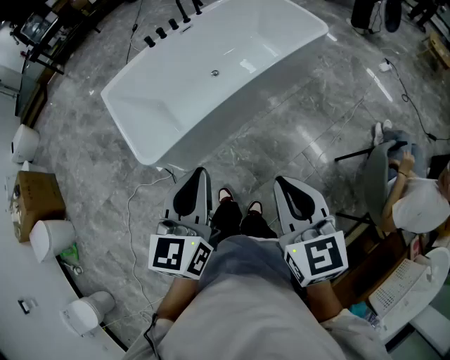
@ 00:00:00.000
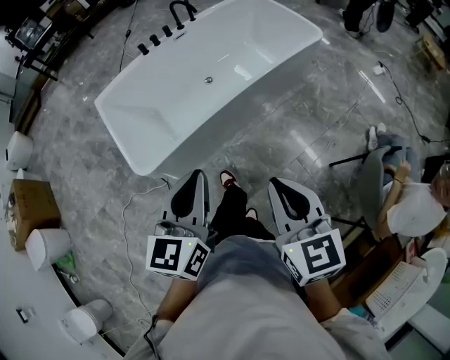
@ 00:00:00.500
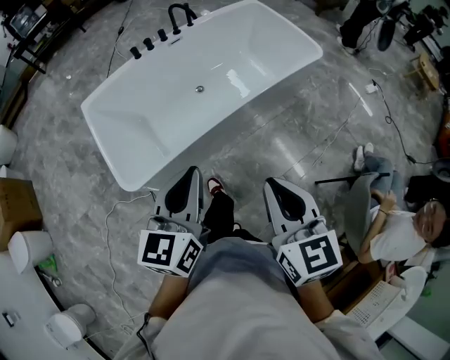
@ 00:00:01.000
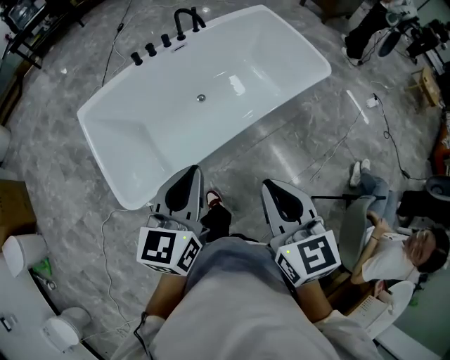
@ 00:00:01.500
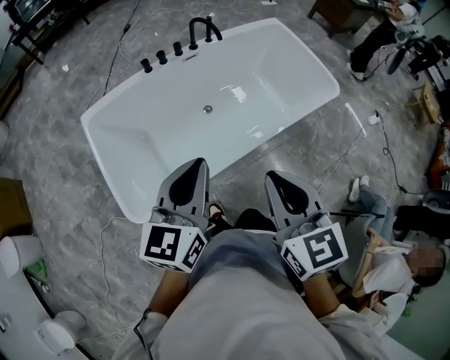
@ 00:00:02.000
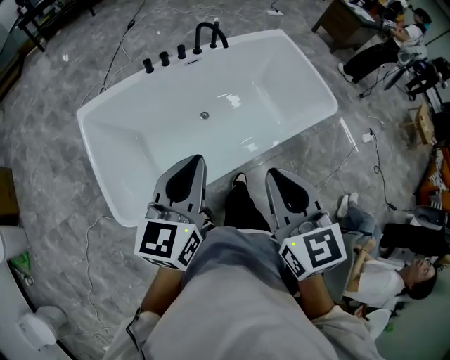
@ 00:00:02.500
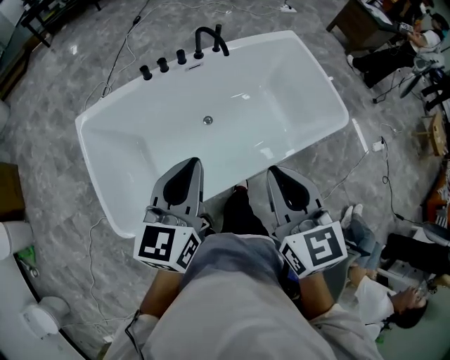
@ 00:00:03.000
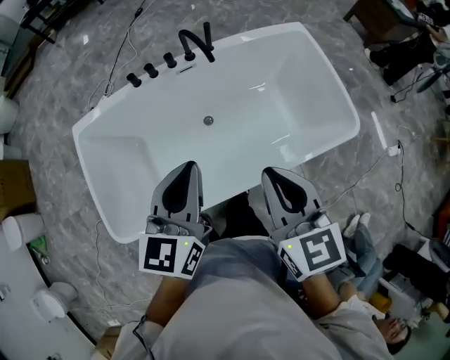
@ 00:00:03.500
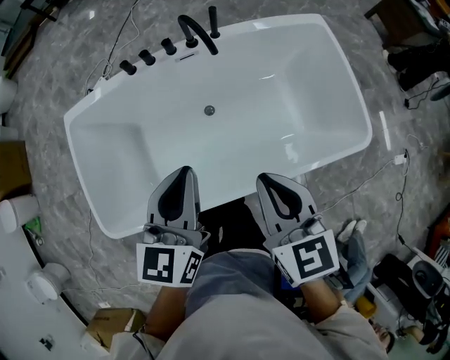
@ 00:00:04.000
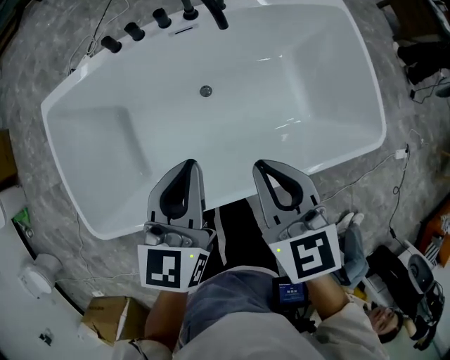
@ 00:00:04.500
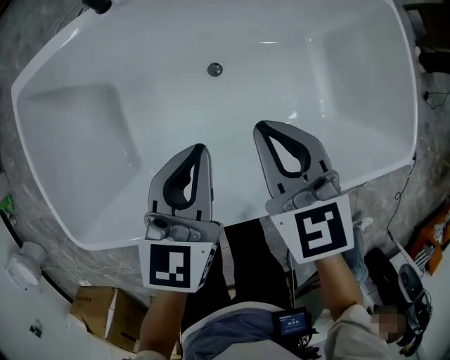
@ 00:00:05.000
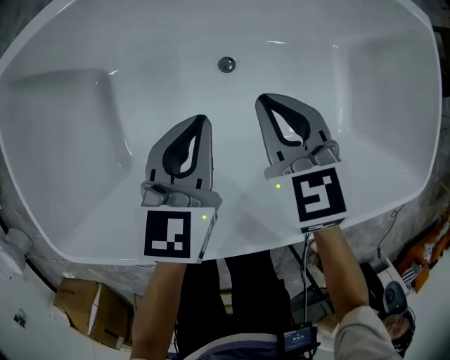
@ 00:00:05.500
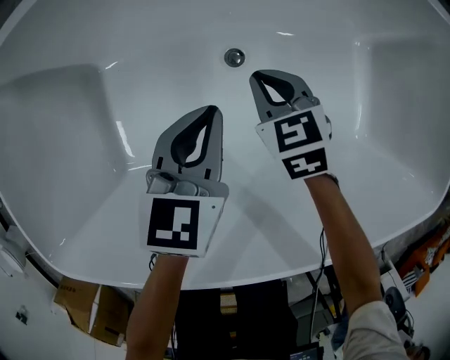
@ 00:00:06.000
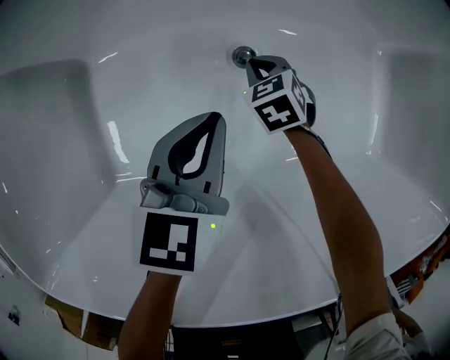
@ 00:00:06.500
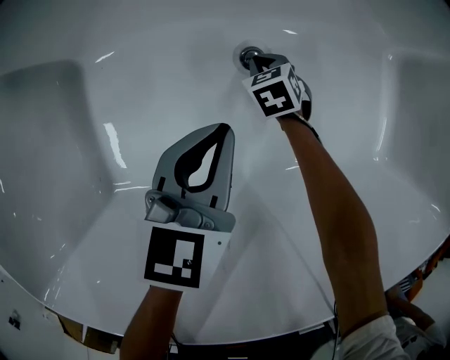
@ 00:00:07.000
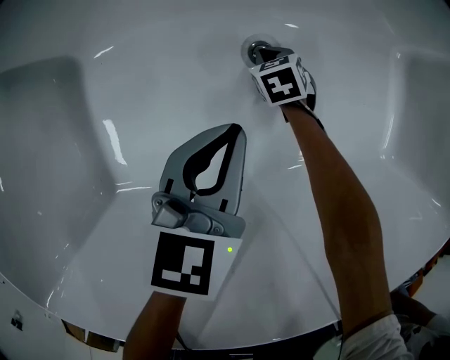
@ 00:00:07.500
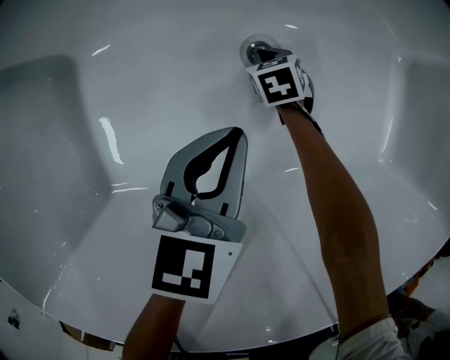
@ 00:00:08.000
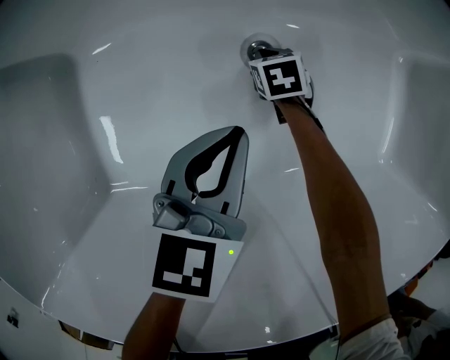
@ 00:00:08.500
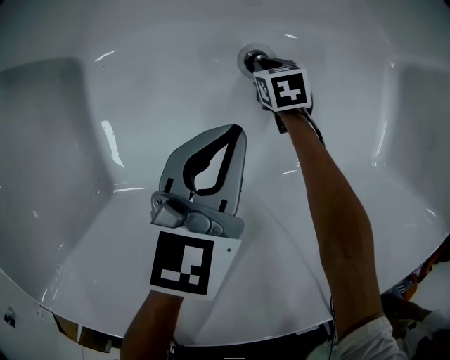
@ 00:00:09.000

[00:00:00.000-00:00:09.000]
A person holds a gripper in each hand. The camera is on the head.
00:00:00.000 to 00:00:02.000: Both grippers travel together forward, approximately 35 cm.
00:00:02.000 to 00:00:04.500: The two grippers go about 40 cm forward, downward and to the right. The right gripper swivels some 20 degrees. The left gripper changes its angle by roughly 20 degrees.
00:00:04.500 to 00:00:07.000: Both grippers travel together downward, about 60 cm. The right gripper angles its fingers downward, by approximately 30 degrees.
00:00:07.000 to 00:00:09.000: The grippers make only small movements.

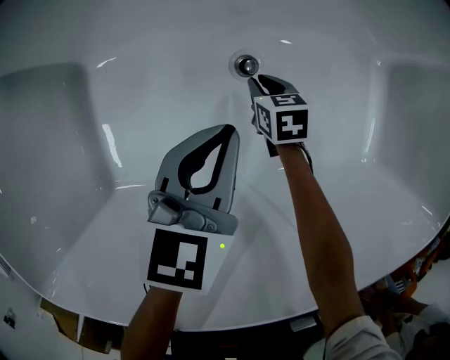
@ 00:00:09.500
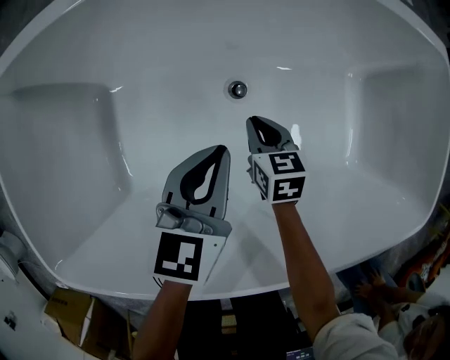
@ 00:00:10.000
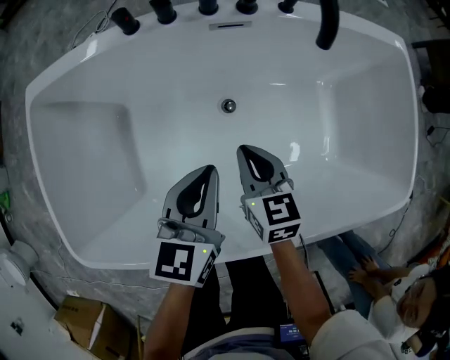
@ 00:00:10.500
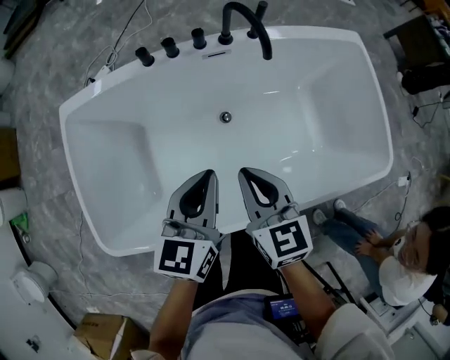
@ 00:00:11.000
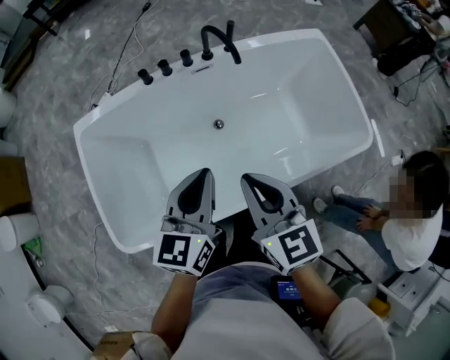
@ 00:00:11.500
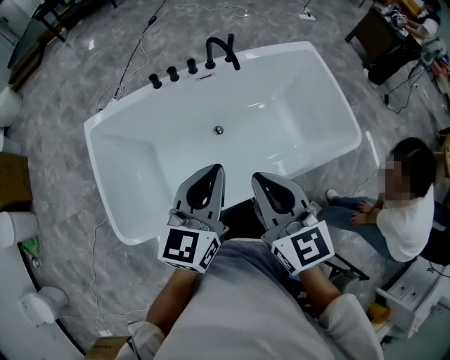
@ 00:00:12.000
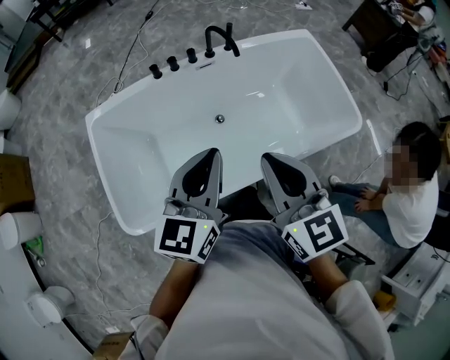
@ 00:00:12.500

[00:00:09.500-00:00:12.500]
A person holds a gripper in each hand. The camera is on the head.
00:00:09.500 to 00:00:11.000: The two grippers go approximately 50 cm upward. The right gripper tips its fingers upward by some 30 degrees.
00:00:11.000 to 00:00:12.500: Both grippers travel together upward and backward, about 30 cm.

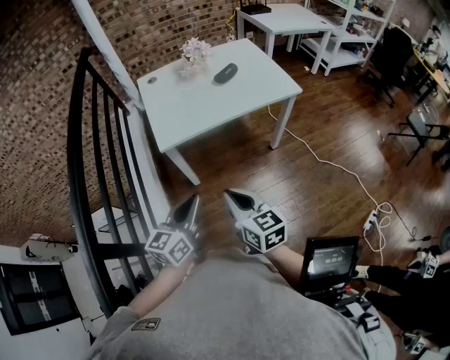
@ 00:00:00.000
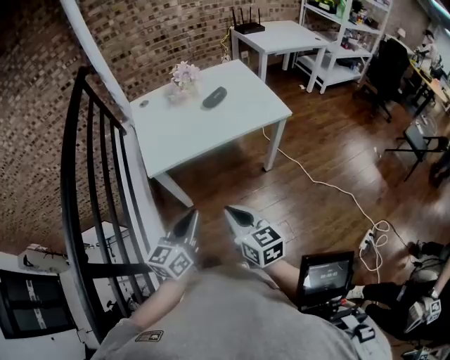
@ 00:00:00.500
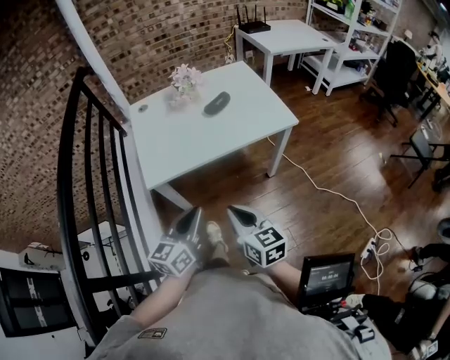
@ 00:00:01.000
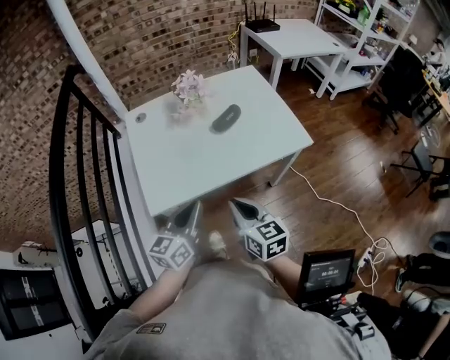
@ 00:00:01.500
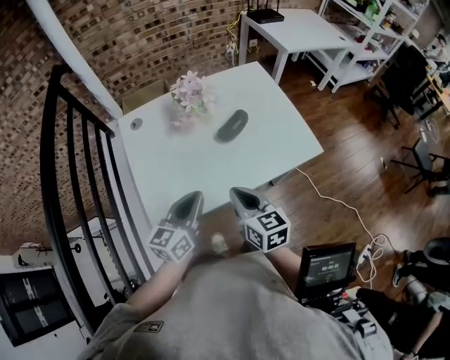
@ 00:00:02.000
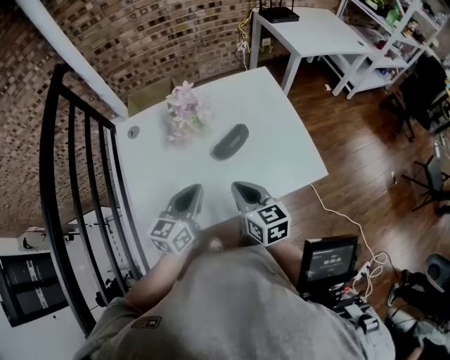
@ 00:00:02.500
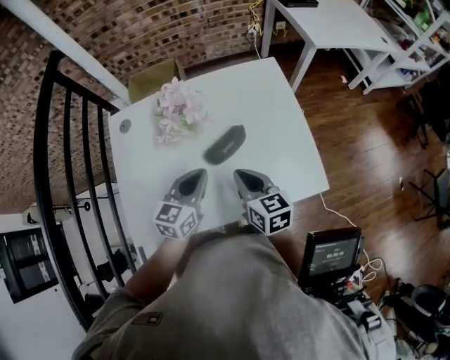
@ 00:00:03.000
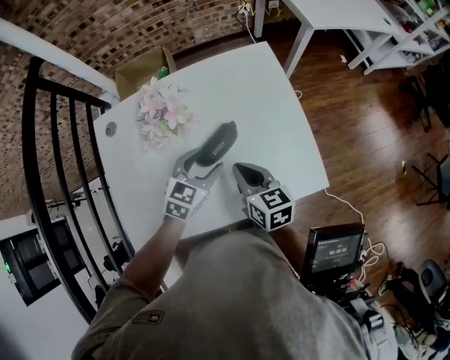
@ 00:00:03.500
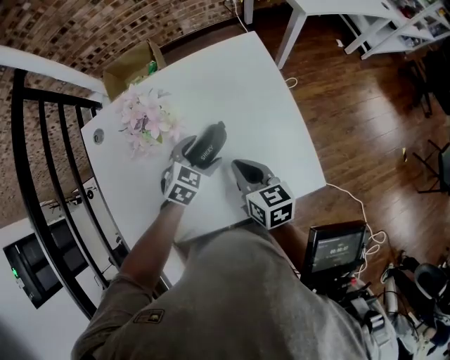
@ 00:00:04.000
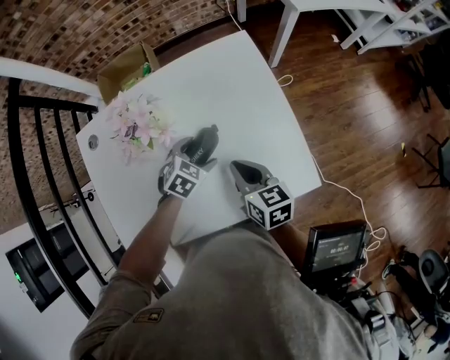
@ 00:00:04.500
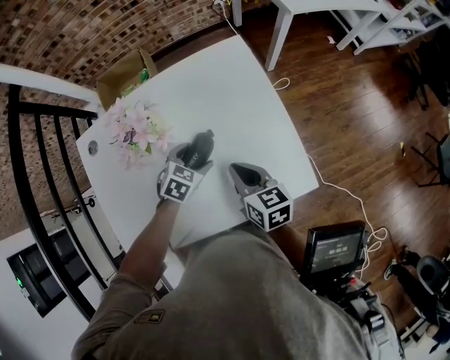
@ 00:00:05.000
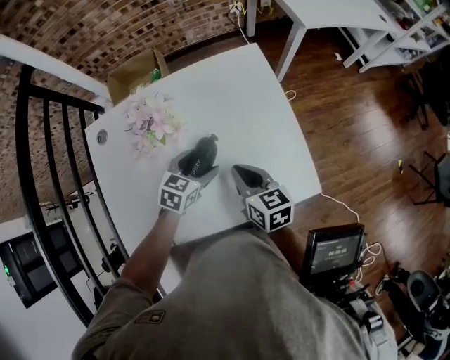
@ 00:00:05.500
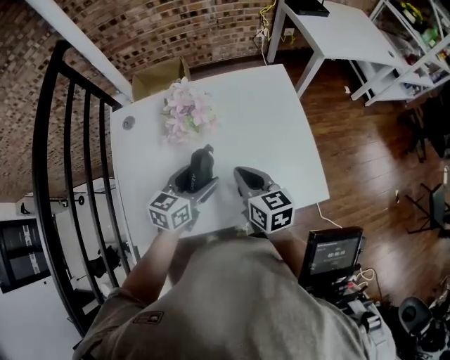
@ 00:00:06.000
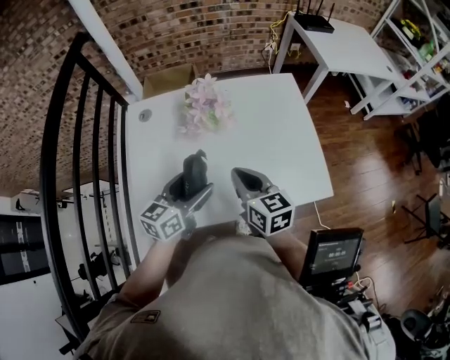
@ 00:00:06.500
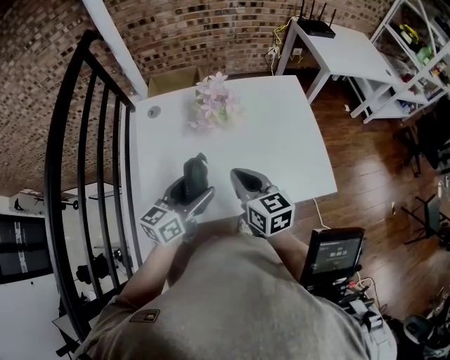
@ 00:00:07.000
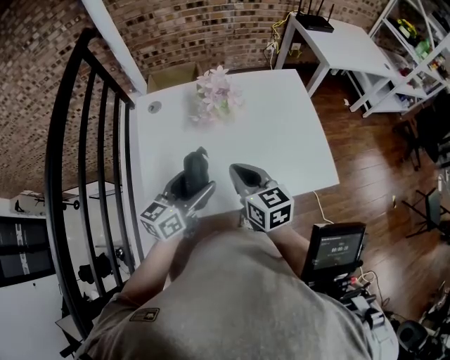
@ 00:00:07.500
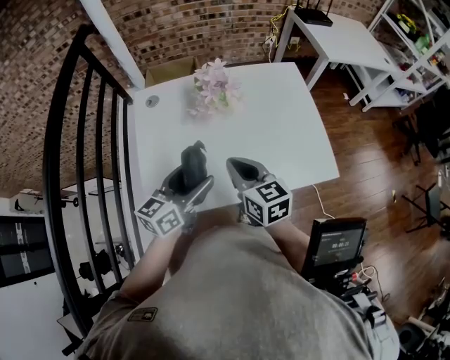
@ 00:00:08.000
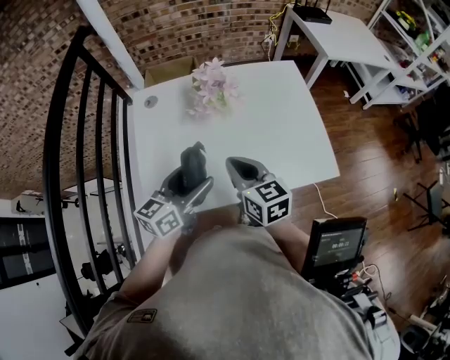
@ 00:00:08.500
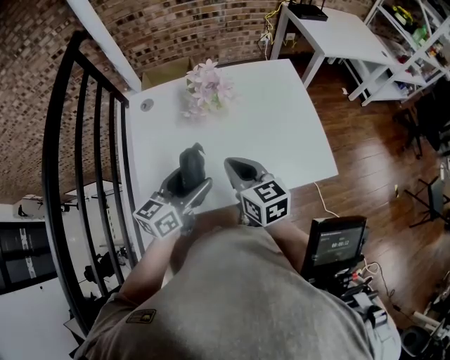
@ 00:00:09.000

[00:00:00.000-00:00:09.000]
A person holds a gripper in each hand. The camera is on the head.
00:00:00.000 to 00:00:02.000: The two grippers go some 35 cm forward.
00:00:02.000 to 00:00:04.500: The right gripper travels forward, to the right and downward by about 30 cm. The left gripper is displaced forward, downward and to the right by roughly 40 cm, tilts its fingers approximately 50 degrees downward, and opens up.
00:00:04.500 to 00:00:07.000: The left gripper moves upward, backward and to the left, some 35 cm, and points its fingers some 50 degrees further upward. The right gripper shifts some 25 cm to the left, upward and backward.
00:00:07.000 to 00:00:09.000: The grippers make only small movements.

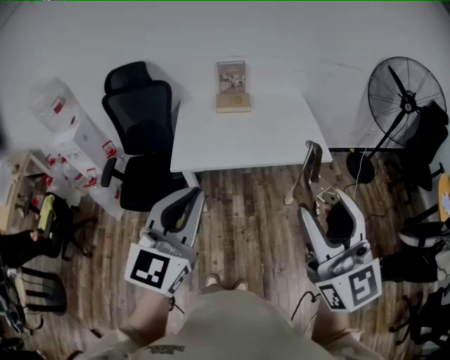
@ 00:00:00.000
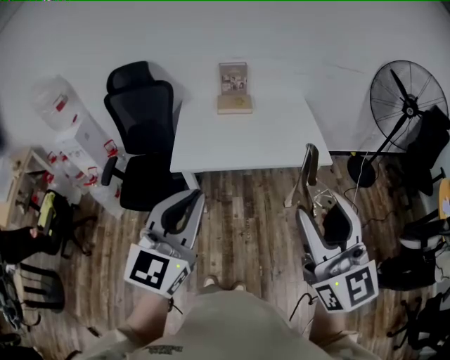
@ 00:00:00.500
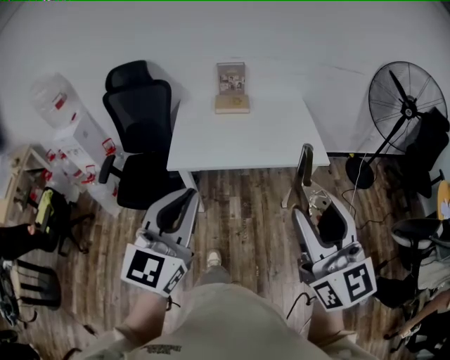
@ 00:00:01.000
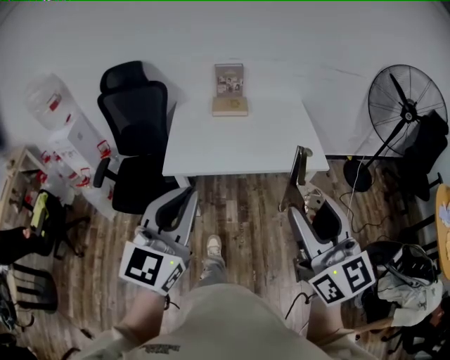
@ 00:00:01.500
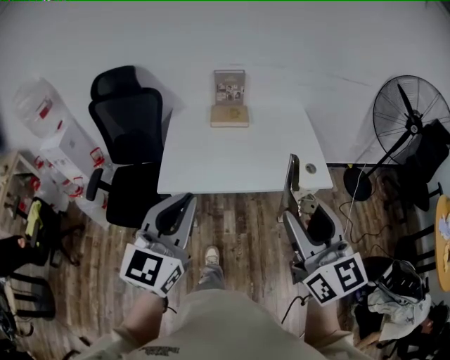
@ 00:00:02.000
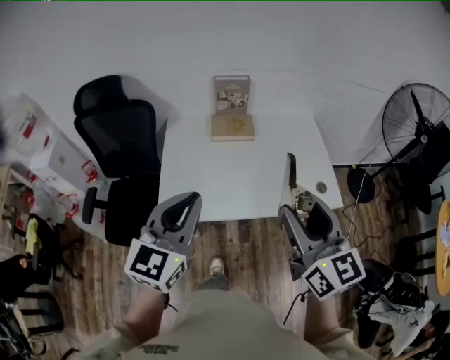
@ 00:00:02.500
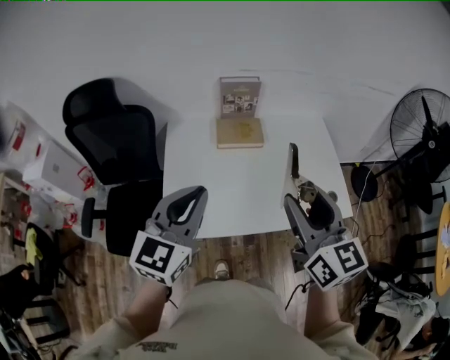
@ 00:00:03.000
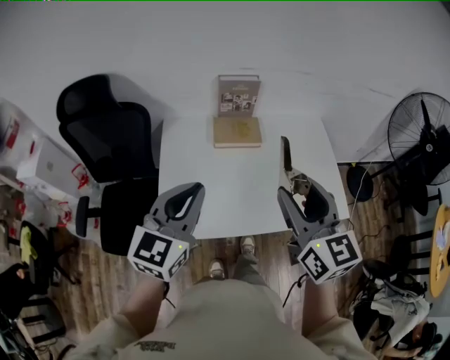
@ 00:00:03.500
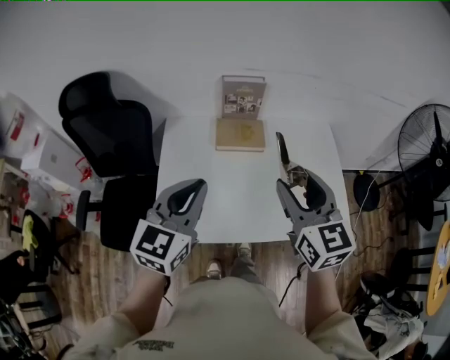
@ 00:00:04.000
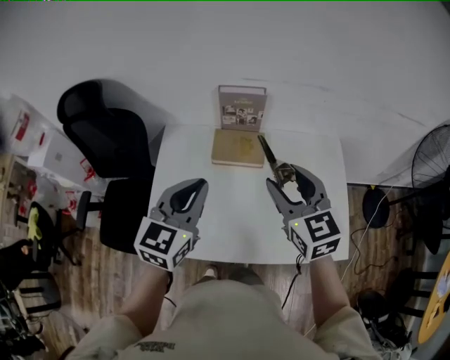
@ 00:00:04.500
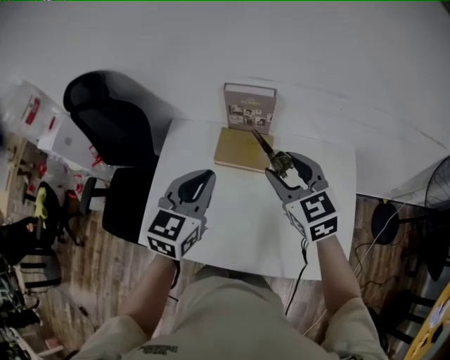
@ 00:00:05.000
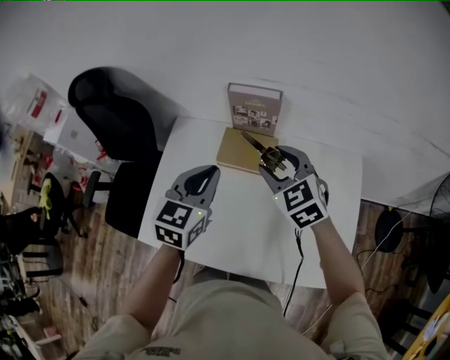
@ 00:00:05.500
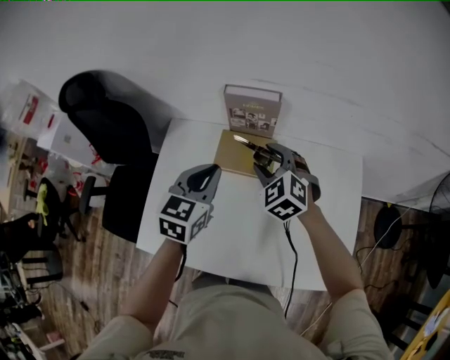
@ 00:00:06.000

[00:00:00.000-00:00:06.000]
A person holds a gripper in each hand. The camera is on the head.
00:00:00.000 to 00:00:02.000: The grippers both shift forward by some 15 cm.
00:00:02.000 to 00:00:04.000: Both grippers travel together forward, roughly 40 cm.
00:00:04.000 to 00:00:06.000: The right gripper is displaced forward and downward by about 35 cm, and rotates around the line of its fingers by approximately 40 degrees, counterclockwise from behind; the left gripper shifts approximately 25 cm forward, downward and to the right, and changes its angle by about 20 degrees.
